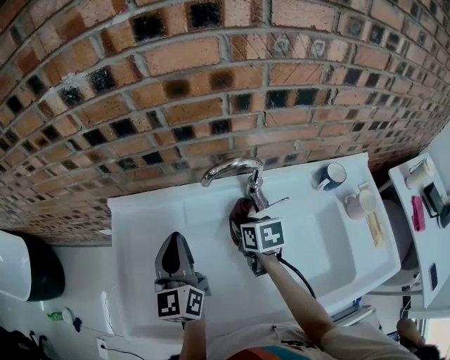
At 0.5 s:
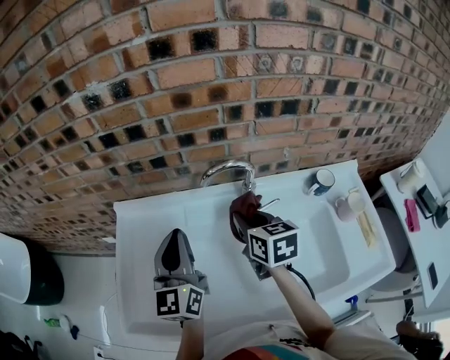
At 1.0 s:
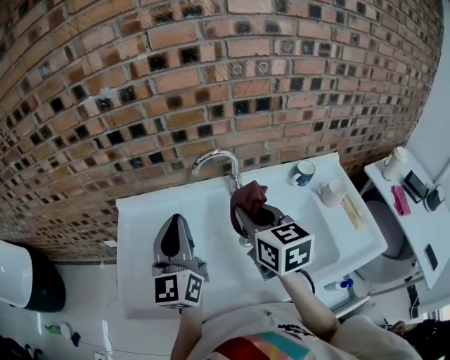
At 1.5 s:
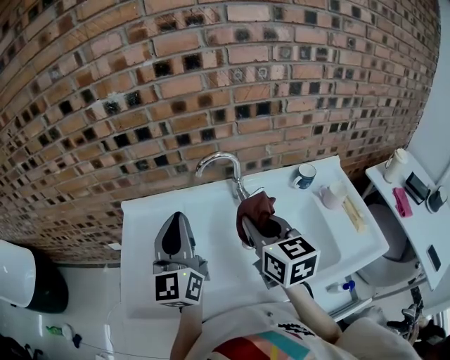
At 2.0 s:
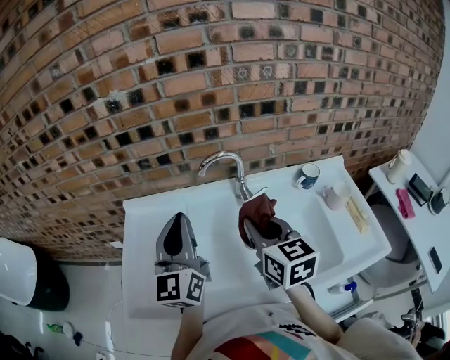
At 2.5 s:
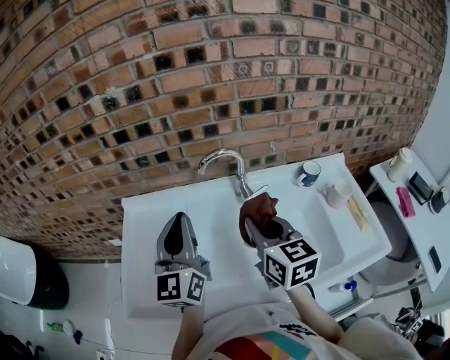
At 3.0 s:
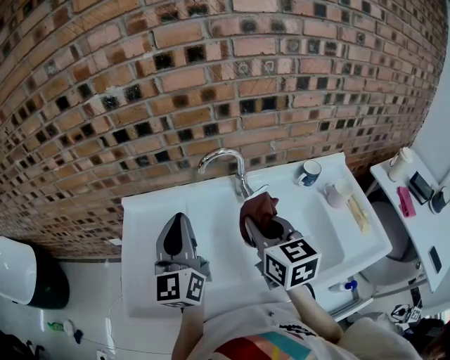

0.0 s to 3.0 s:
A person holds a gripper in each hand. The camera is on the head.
0.0 to 1.5 s: The right gripper shifts approximately 30 cm upward and backward, and angles its fingers upward, by roughly 30 degrees; the left gripper moves upward and backward, approximately 15 cm.
1.5 to 3.0 s: There are only small adjustments of the grippers.

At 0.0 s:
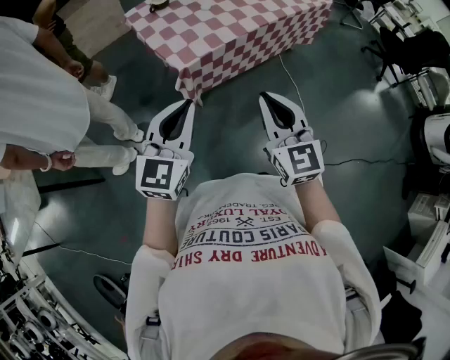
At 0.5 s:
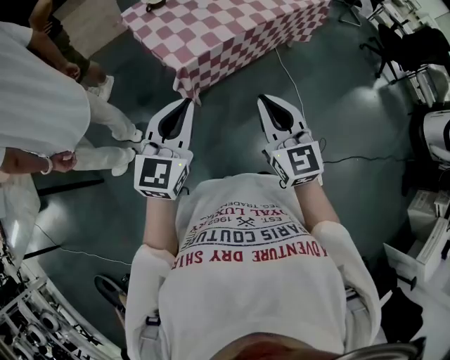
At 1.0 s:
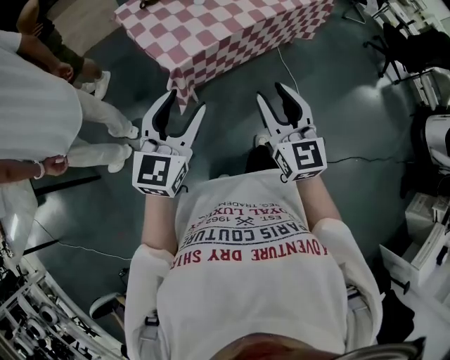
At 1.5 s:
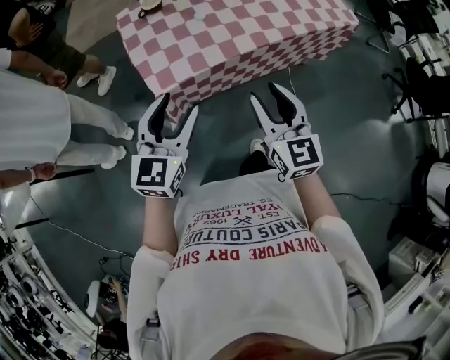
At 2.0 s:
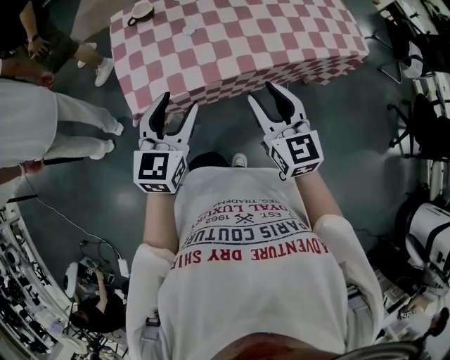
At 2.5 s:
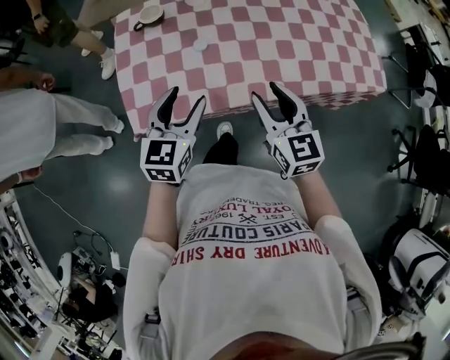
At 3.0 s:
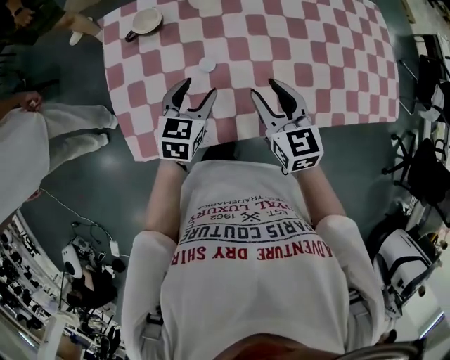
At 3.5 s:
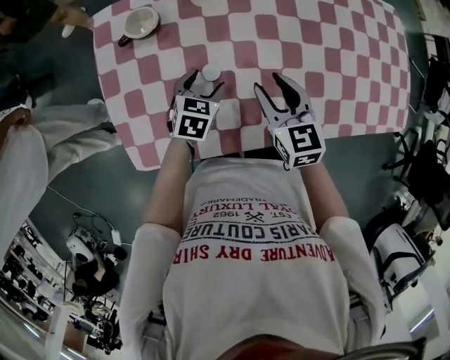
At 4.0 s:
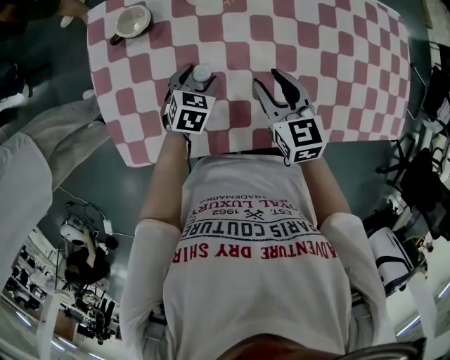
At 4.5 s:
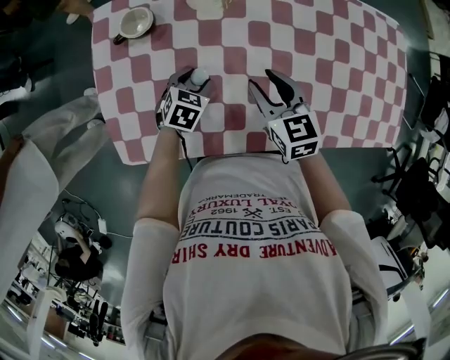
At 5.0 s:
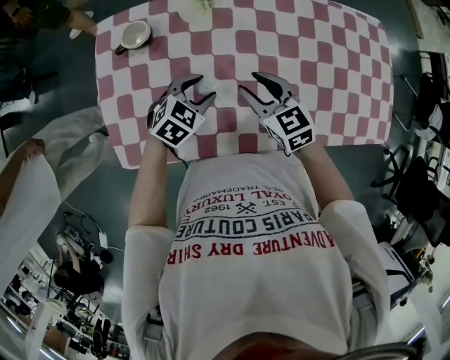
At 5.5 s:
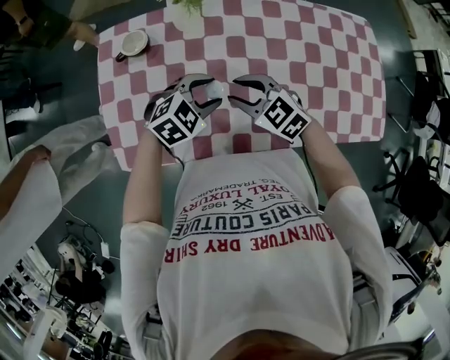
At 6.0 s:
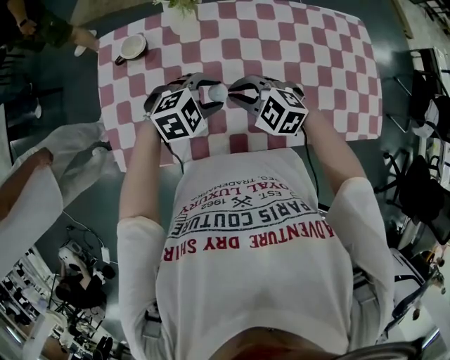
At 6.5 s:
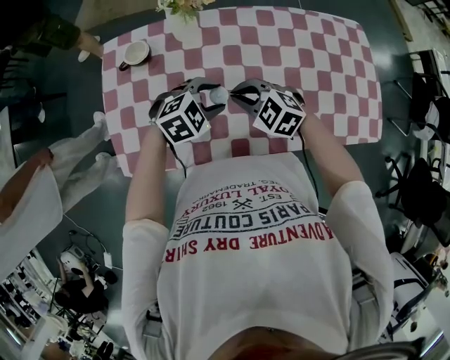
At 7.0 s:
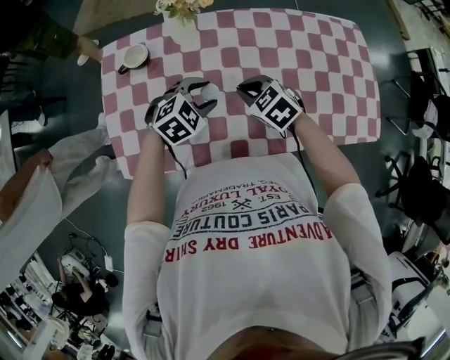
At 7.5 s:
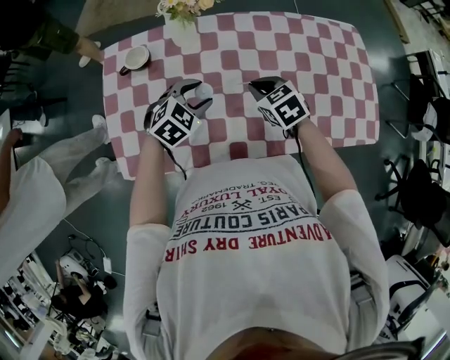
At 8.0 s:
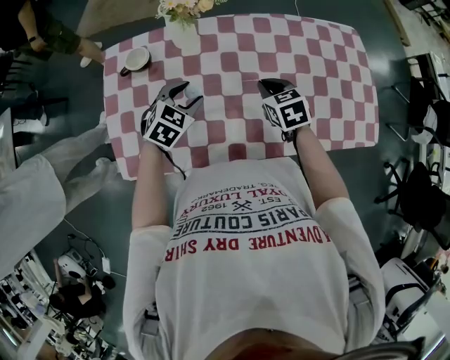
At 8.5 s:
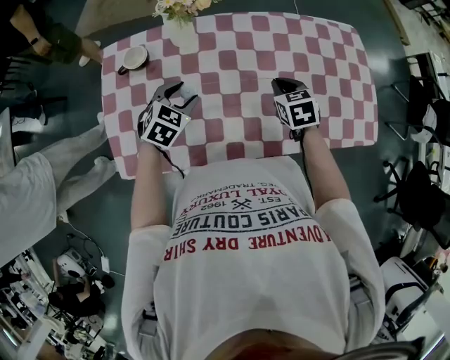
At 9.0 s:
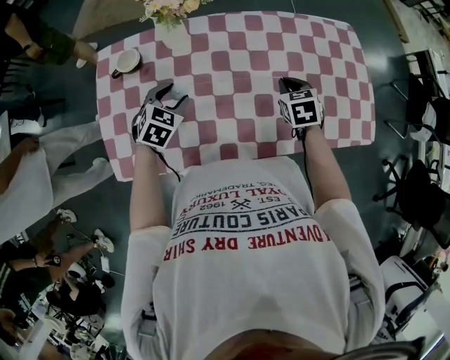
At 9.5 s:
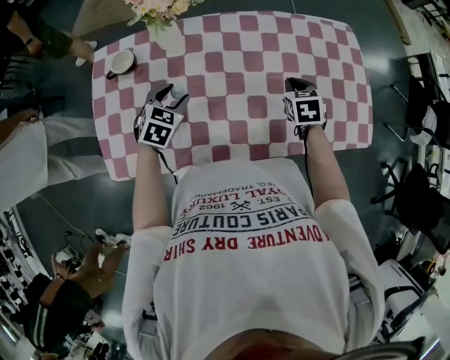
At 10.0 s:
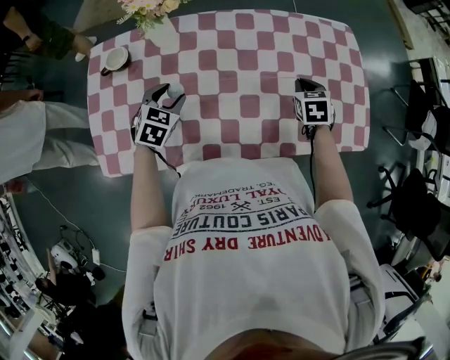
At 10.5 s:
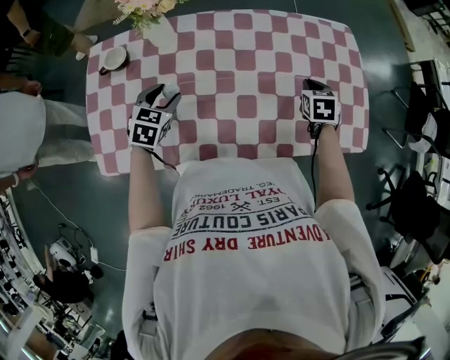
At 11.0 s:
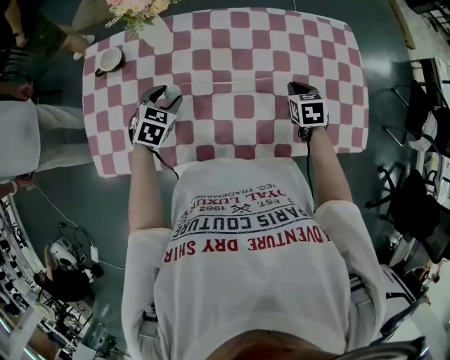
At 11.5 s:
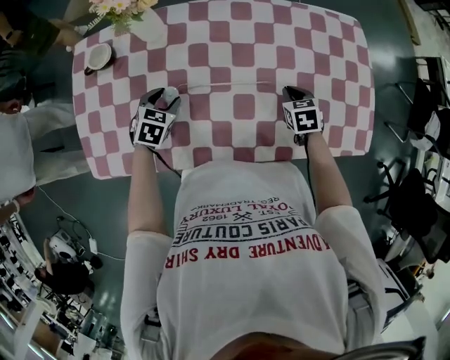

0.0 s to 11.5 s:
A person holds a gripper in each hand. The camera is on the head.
0.0 to 2.0 s: The grippers both shift forward and to the right by about 35 cm. The right gripper rotates some 20 degrees, and opens; the left gripper swivels roughly 30 degrees, and opens.
2.0 to 4.0 s: The two grippers go about 40 cm forward and downward. The right gripper rotates roughly 30 degrees; the left gripper points its fingers approximately 40 degrees further downward.
4.0 to 6.0 s: The left gripper is displaced upward by about 15 cm, and rolls clockwise, seen from behind, by roughly 50 degrees; the right gripper moves about 5 cm, twists roughly 50 degrees counterclockwise, seen from behind, and closes.
6.0 to 7.5 s: The right gripper moves about 10 cm, and swivels about 40 degrees, while the left gripper moves roughly 5 cm, and changes its angle by some 20 degrees.
7.5 to 9.5 s: The left gripper rotates roughly 20 degrees. The right gripper heads to the right, covering roughly 20 cm, and rotates approximately 30 degrees.
9.5 to 11.5 s: Both grippers move downward, approximately 10 cm.

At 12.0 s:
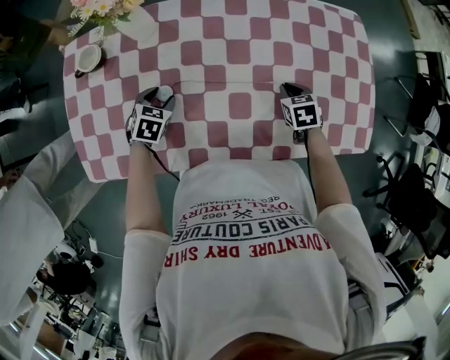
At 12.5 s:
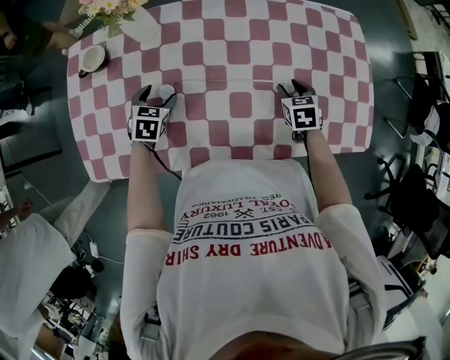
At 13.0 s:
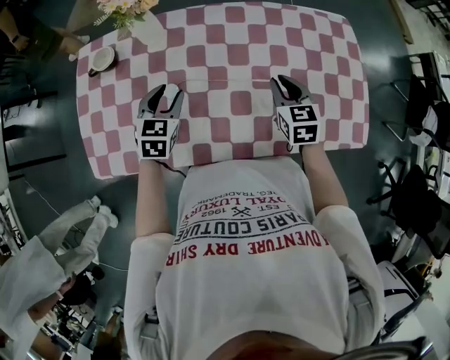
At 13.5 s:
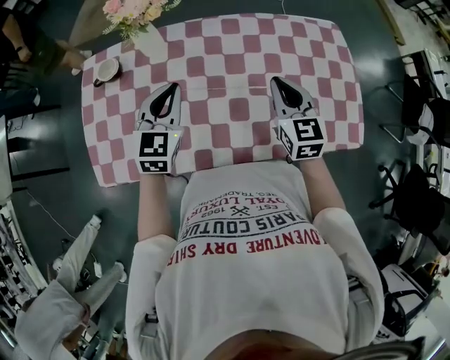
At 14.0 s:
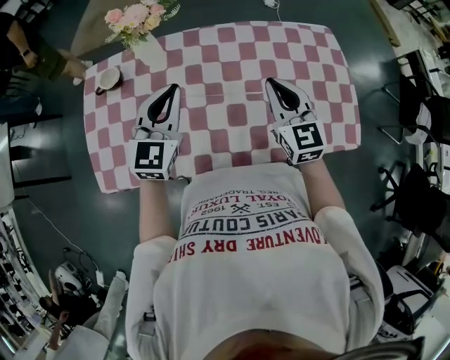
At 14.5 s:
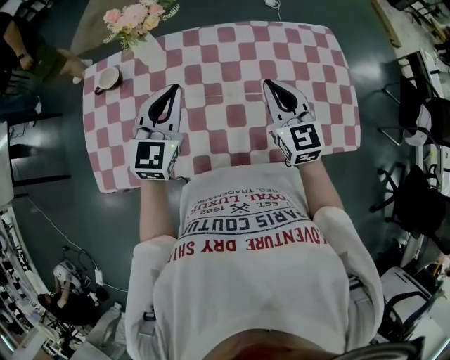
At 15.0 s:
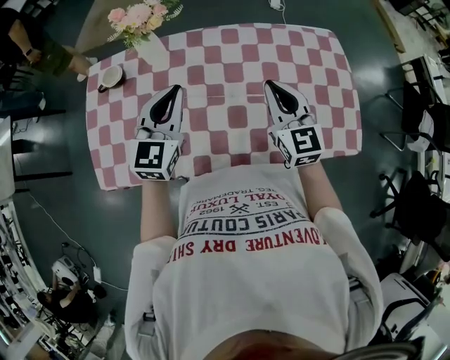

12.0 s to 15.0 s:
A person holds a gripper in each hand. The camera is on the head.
12.0 to 13.5 s: The grippers both shift upward by approximately 25 cm. The left gripper points its fingers about 40 degrees further upward, and closes up. The right gripper points its fingers roughly 40 degrees further upward, and opens, then closes again.
13.5 to 15.0 s: The left gripper shifts by some 5 cm.

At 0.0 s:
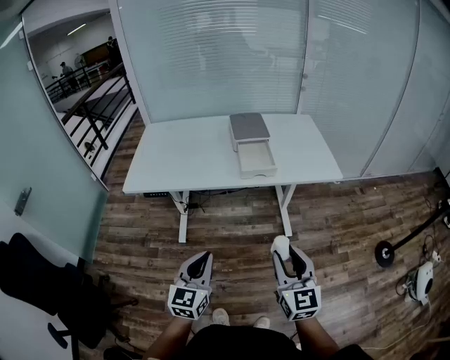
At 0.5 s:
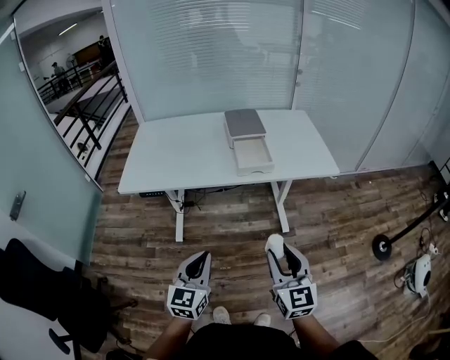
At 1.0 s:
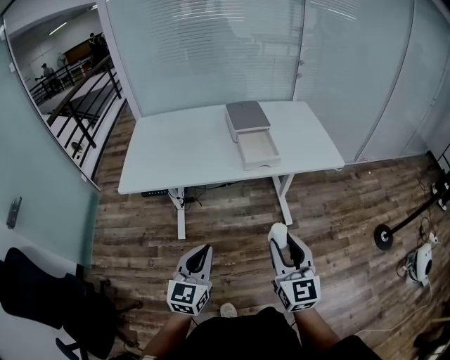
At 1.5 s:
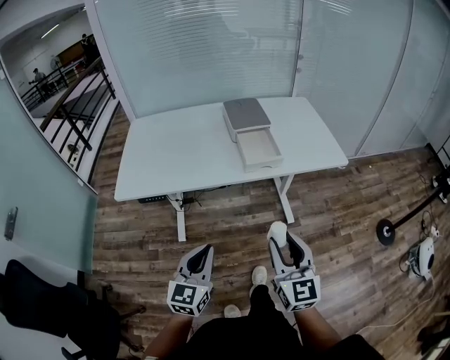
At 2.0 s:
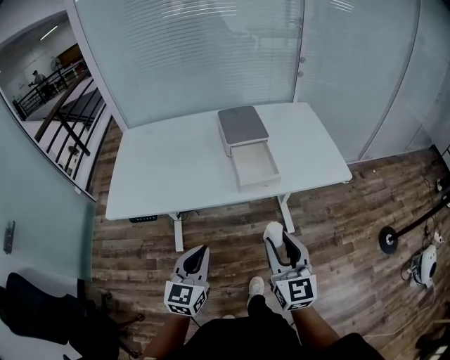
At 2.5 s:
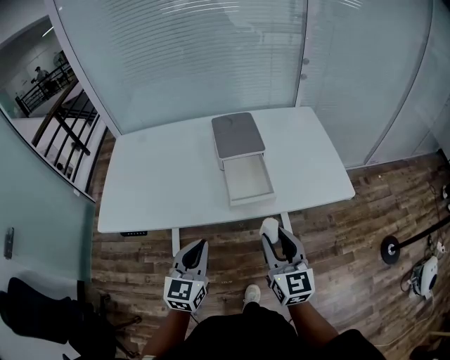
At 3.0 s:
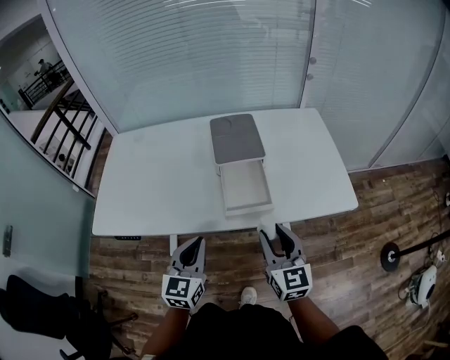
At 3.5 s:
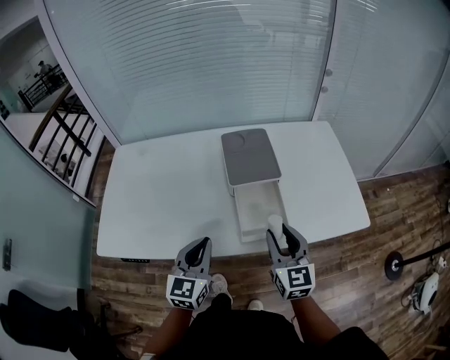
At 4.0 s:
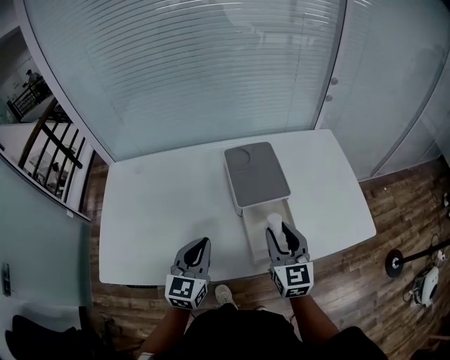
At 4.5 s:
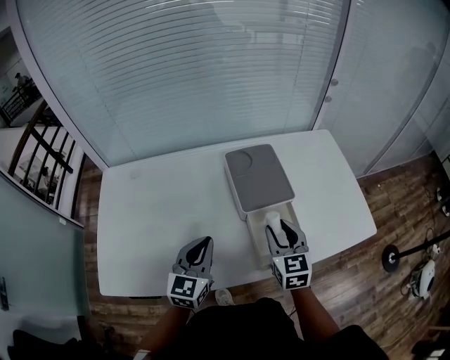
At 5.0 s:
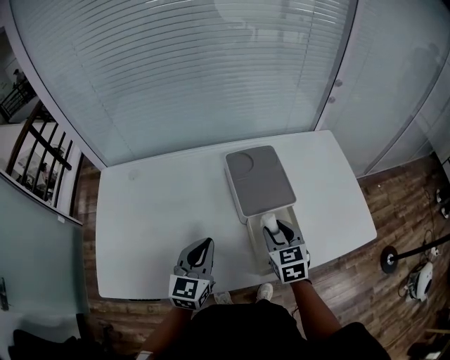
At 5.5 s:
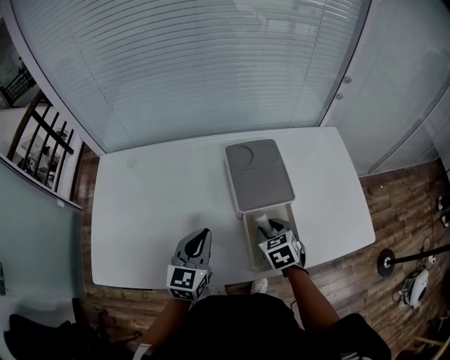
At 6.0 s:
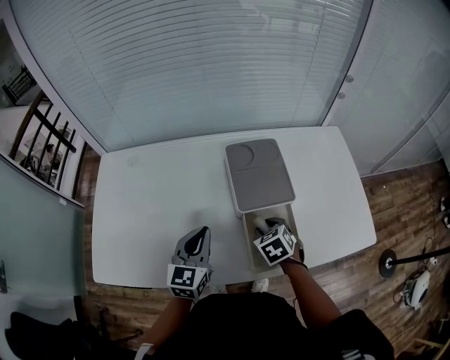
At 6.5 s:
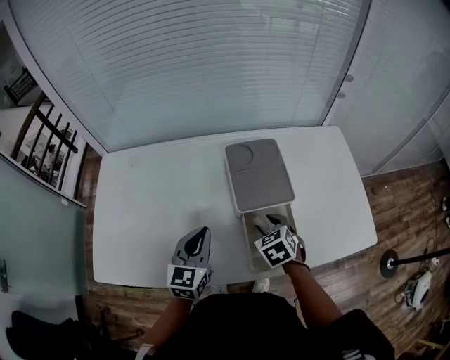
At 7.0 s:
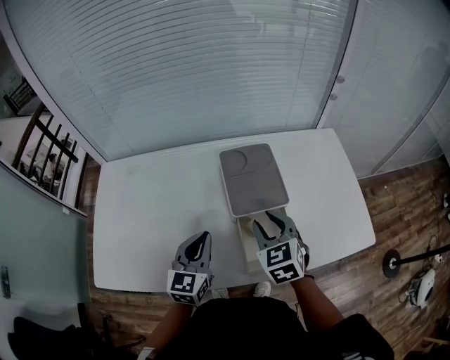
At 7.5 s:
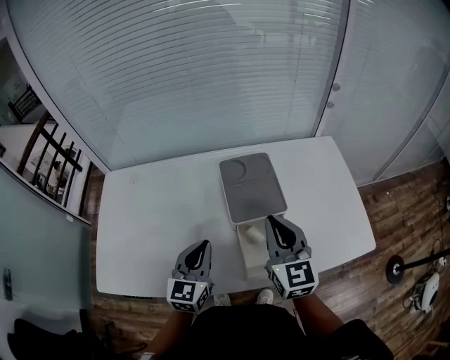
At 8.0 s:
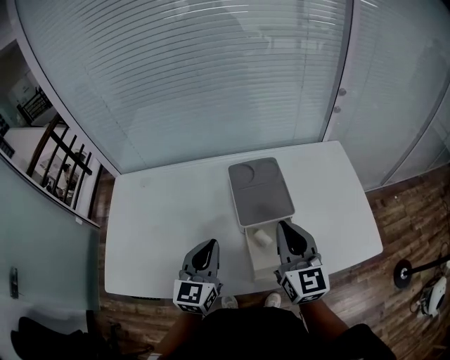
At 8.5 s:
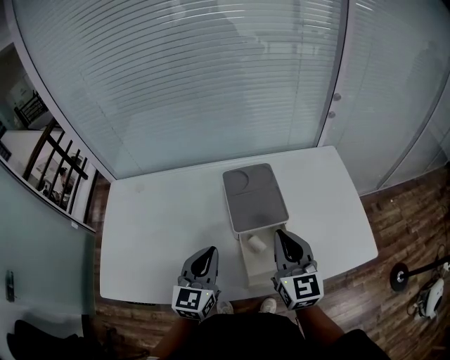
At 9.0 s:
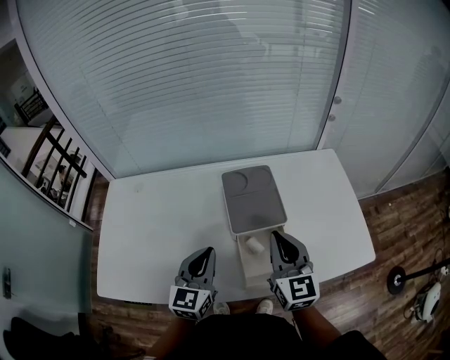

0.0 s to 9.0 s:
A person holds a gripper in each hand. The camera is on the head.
0.0 to 2.0 s: Both grippers move forward, about 15 cm.
2.0 to 4.5 s: Both grippers travel together forward, about 35 cm.
4.5 to 7.0 s: The right gripper travels downward and back again, about 10 cm each way, and turns by roughly 20 degrees.
7.0 to 9.0 s: The right gripper is displaced upward by about 10 cm, swivels about 30 degrees, and closes.
